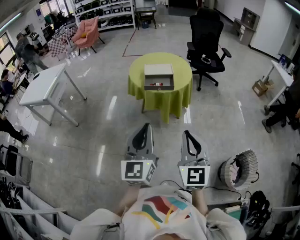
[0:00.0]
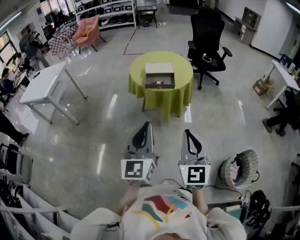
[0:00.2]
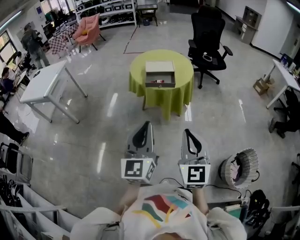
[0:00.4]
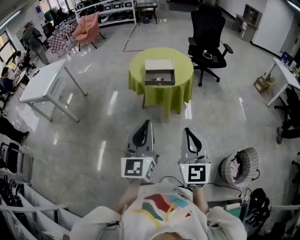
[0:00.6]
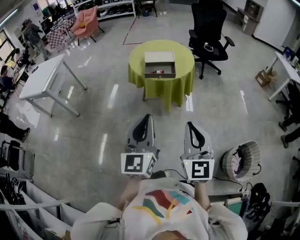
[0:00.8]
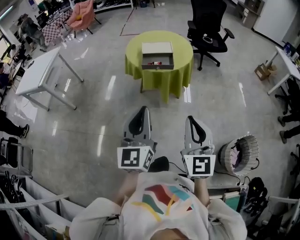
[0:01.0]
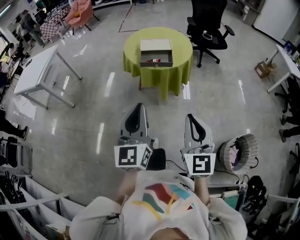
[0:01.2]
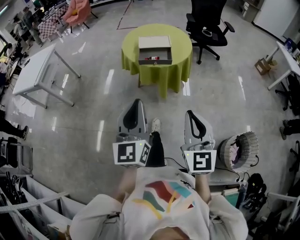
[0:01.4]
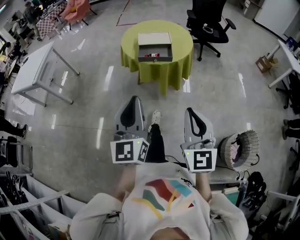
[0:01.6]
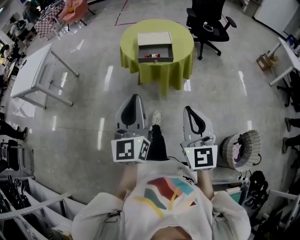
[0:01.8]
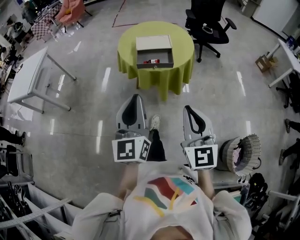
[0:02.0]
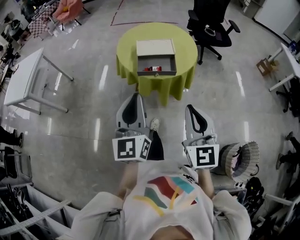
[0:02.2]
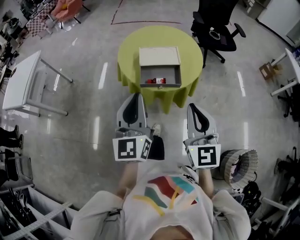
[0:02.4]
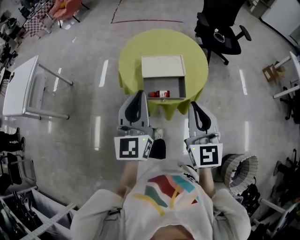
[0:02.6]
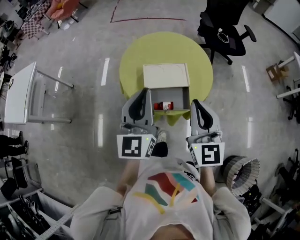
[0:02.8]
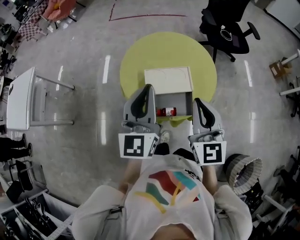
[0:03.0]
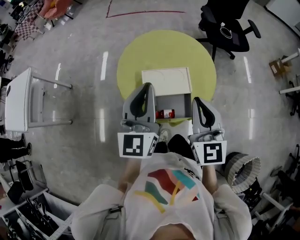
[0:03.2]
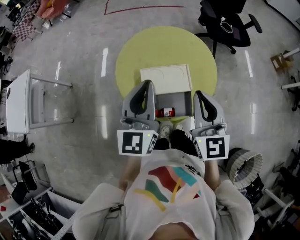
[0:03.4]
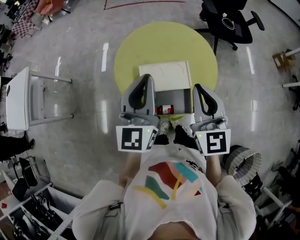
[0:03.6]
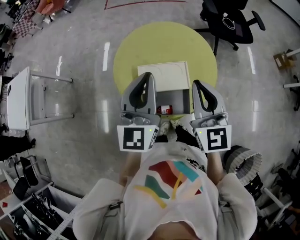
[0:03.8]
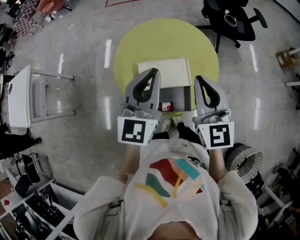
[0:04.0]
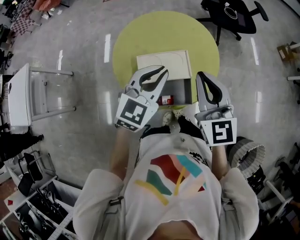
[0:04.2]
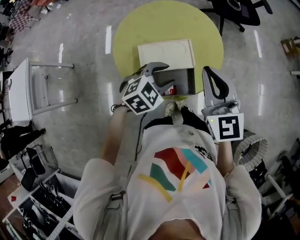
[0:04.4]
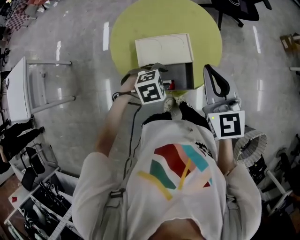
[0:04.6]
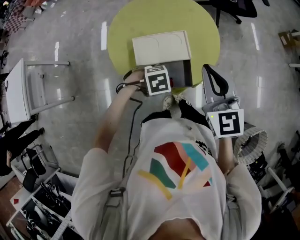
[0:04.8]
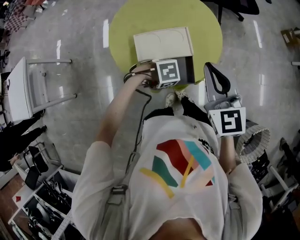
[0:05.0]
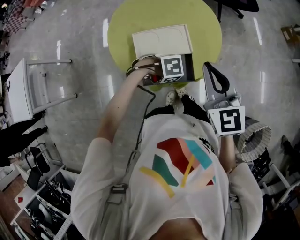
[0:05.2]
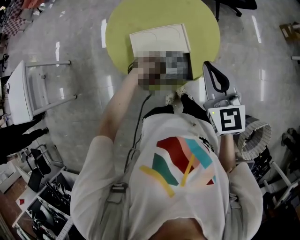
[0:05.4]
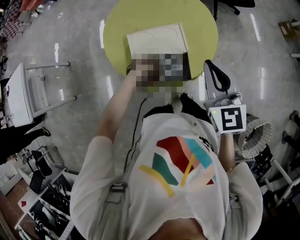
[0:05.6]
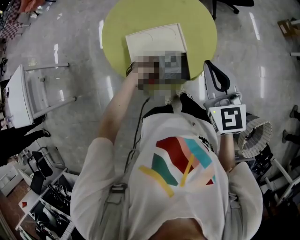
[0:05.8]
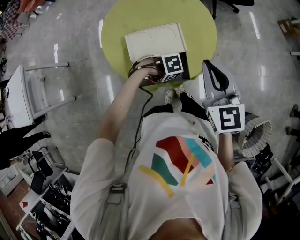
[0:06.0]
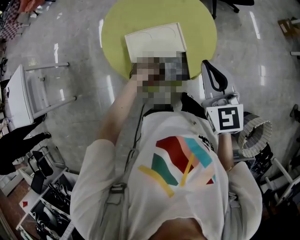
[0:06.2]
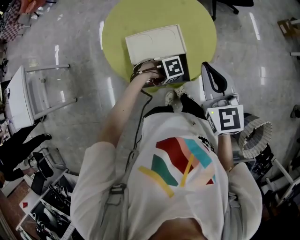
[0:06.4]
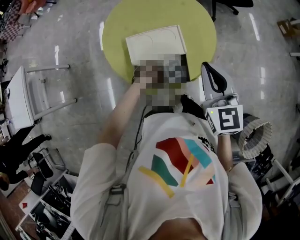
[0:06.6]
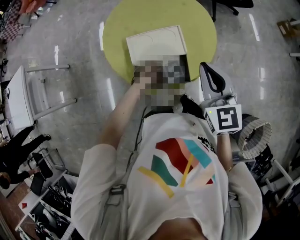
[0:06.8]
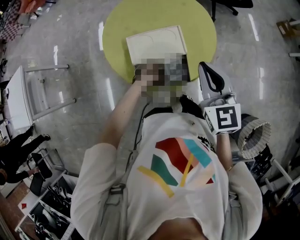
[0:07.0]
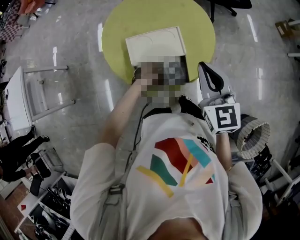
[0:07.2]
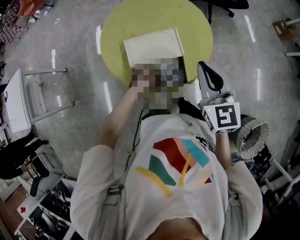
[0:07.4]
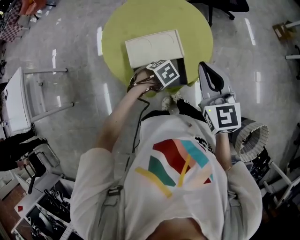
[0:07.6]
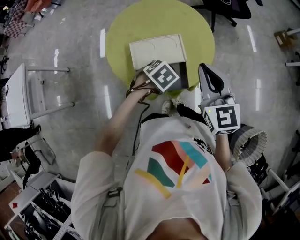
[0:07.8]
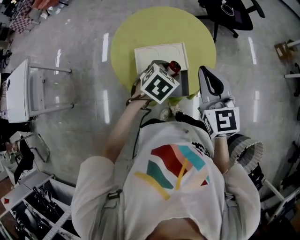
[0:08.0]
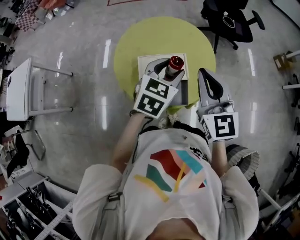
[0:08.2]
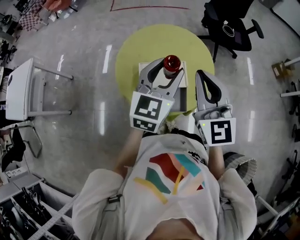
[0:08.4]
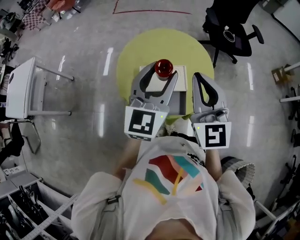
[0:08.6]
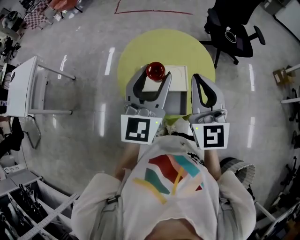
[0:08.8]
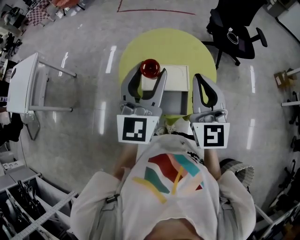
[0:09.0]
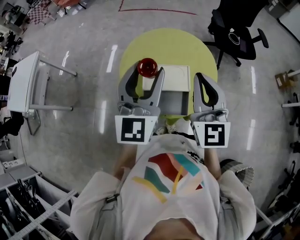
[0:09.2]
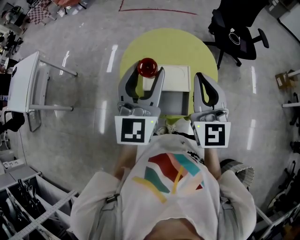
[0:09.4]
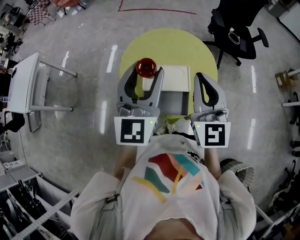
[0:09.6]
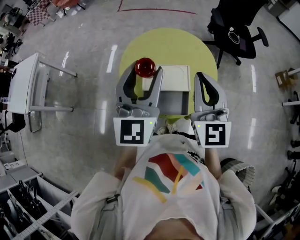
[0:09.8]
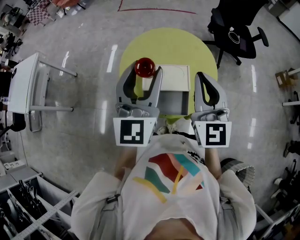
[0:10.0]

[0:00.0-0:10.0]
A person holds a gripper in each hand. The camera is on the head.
0:00.0 to 0:01.4: The grippers make only small movements.
0:01.4 to 0:02.8: Both grippers are carried forward, roughly 40 cm.
0:02.8 to 0:04.2: The left gripper is displaced forward, to the right and downward by some 15 cm, and changes its angle by roughly 40 degrees, while the right gripper goes approximately 10 cm forward.
0:04.2 to 0:05.8: The left gripper goes approximately 30 cm downward, tilts its fingers about 50 degrees downward, and opens; the right gripper ends up some 10 cm from where it was.
0:05.8 to 0:07.2: There are only small adjustments of the grippers.
0:07.2 to 0:08.6: The right gripper moves upward, roughly 10 cm, and rotates approximately 20 degrees. The left gripper shifts approximately 40 cm upward, and angles its fingers upward, by approximately 70 degrees.
0:08.6 to 0:10.0: The left gripper heads to the left, covering approximately 5 cm.

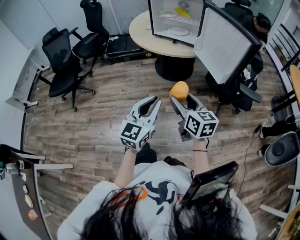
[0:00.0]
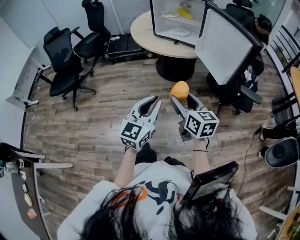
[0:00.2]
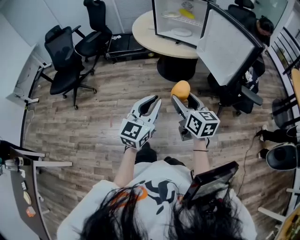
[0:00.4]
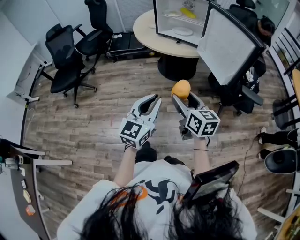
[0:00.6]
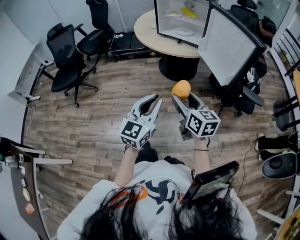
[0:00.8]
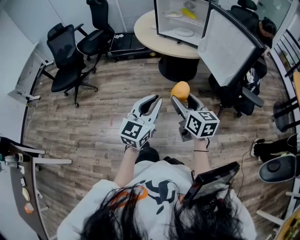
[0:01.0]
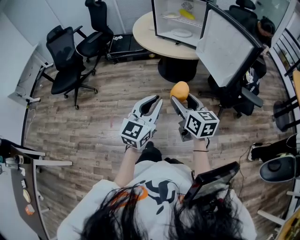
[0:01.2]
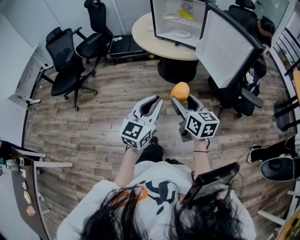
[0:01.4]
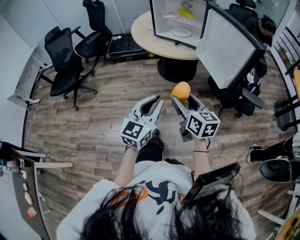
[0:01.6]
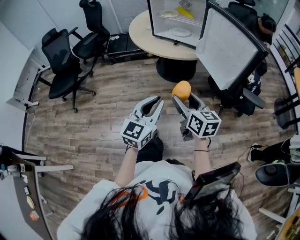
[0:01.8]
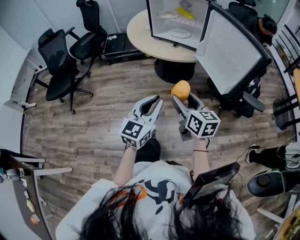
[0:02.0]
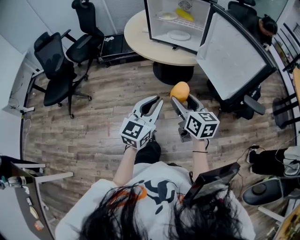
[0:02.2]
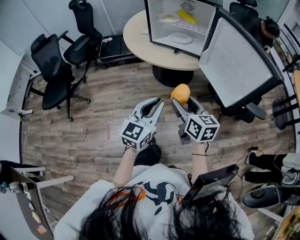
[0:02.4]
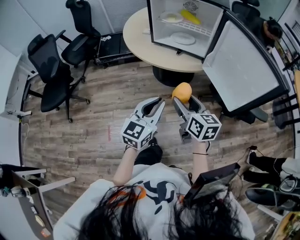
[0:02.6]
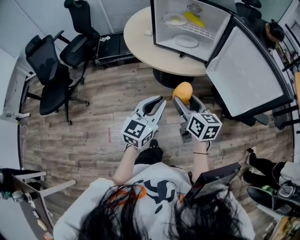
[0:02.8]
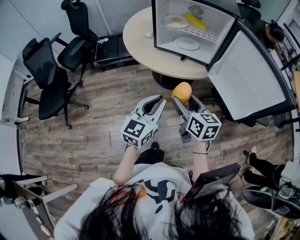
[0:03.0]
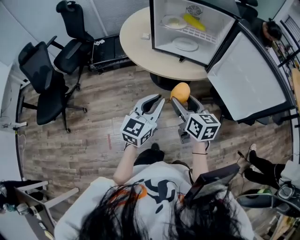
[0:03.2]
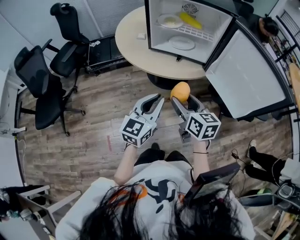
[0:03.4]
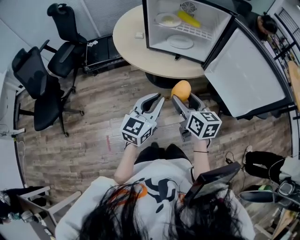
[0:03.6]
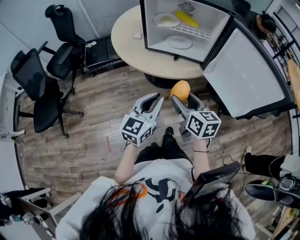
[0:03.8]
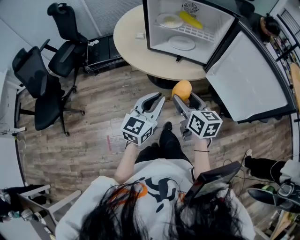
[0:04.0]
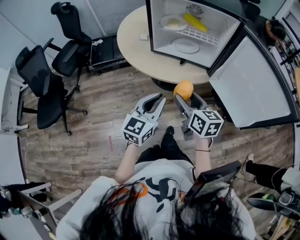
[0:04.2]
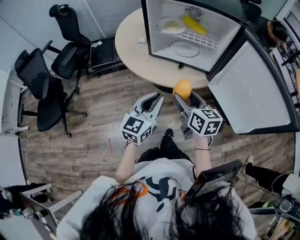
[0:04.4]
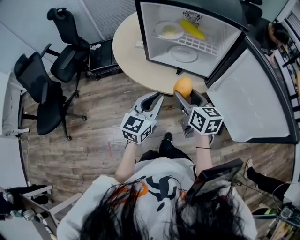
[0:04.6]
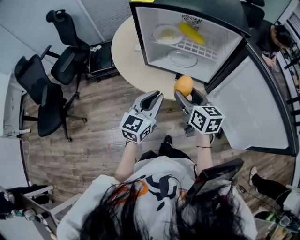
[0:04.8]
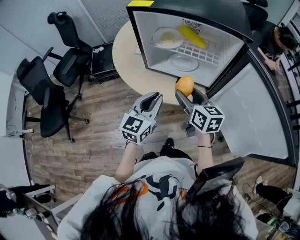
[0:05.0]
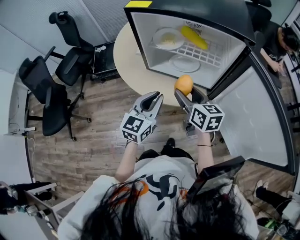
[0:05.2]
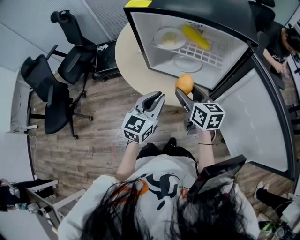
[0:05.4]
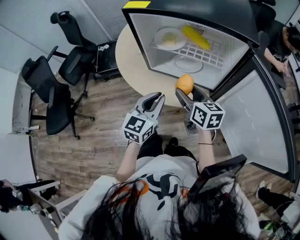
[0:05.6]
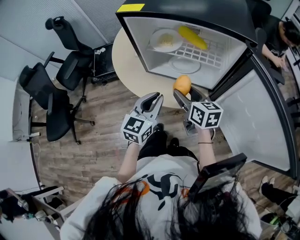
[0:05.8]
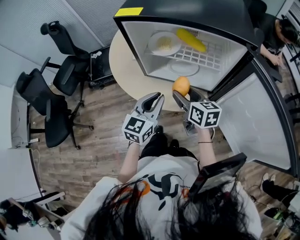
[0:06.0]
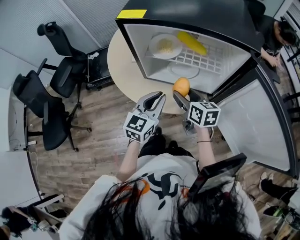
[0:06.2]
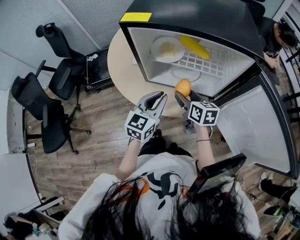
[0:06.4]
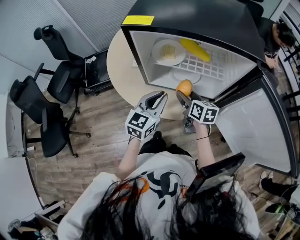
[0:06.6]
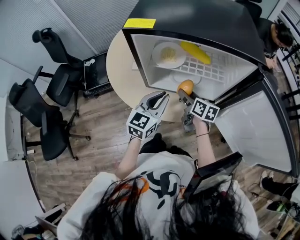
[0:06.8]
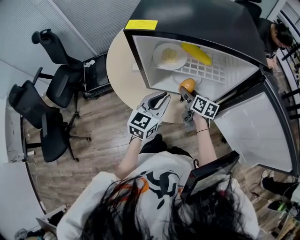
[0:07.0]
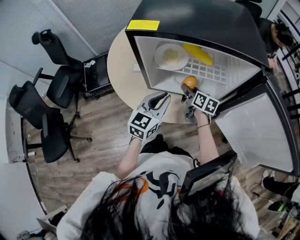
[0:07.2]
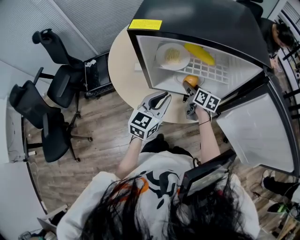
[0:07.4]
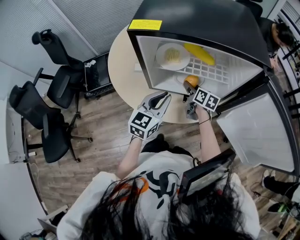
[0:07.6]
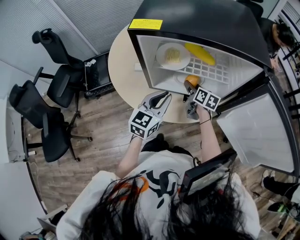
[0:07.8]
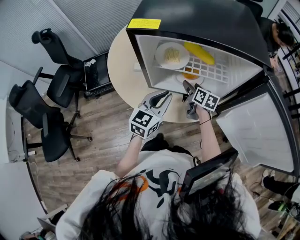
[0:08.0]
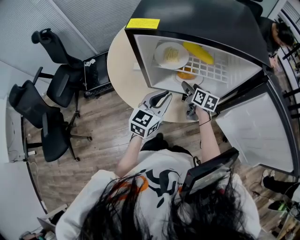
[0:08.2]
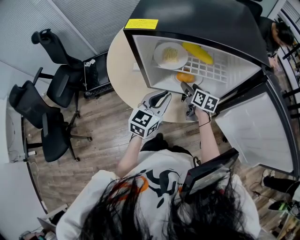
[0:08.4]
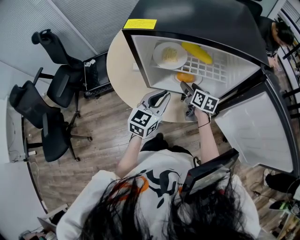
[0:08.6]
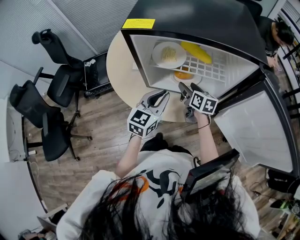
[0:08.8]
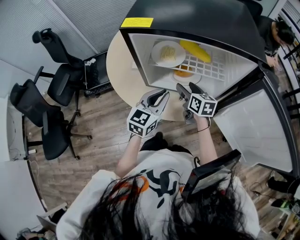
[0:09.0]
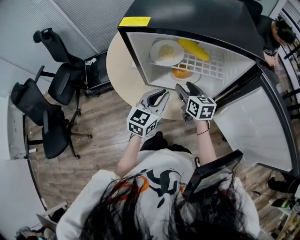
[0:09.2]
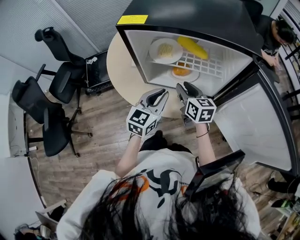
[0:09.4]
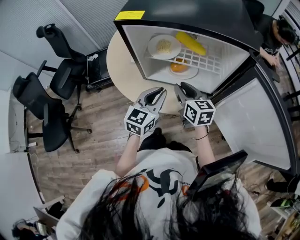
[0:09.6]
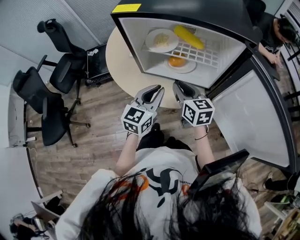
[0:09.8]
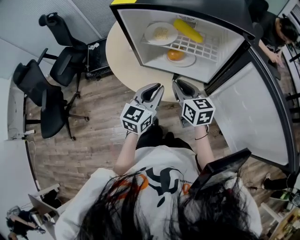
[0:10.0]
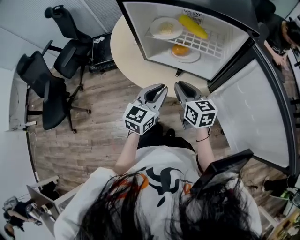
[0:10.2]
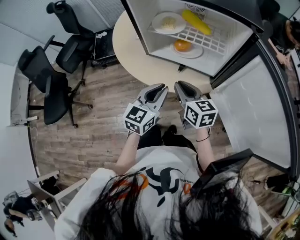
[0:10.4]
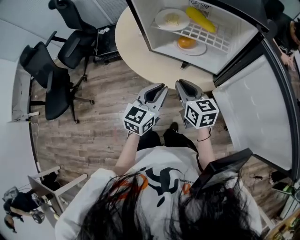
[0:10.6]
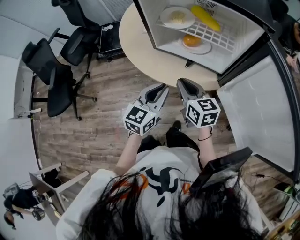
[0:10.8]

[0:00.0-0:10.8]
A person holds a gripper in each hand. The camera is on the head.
0:00.0 to 0:01.6: The grippers make only small movements.
0:01.6 to 0:03.0: The right gripper travels forward and to the left by approximately 25 cm. Meanwhile the left gripper goes roughly 25 cm forward.
0:03.0 to 0:04.6: The grippers both shift forward by about 15 cm.
0:04.6 to 0:06.2: Both grippers move forward, some 15 cm.
0:06.2 to 0:07.8: The right gripper heads forward and downward, covering some 15 cm, and rotates some 20 degrees. Meanwhile the left gripper moves some 5 cm.
0:07.8 to 0:09.2: The right gripper travels upward and backward by approximately 10 cm, and rotates some 20 degrees.
0:09.2 to 0:10.8: The two grippers go about 15 cm backward. The right gripper closes its fingers.

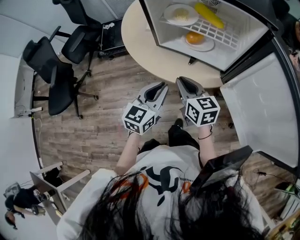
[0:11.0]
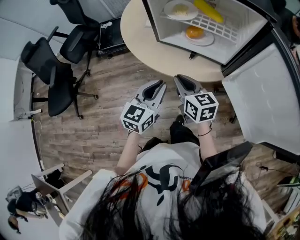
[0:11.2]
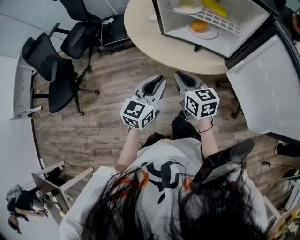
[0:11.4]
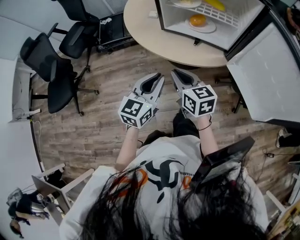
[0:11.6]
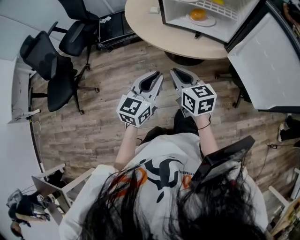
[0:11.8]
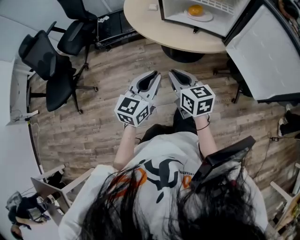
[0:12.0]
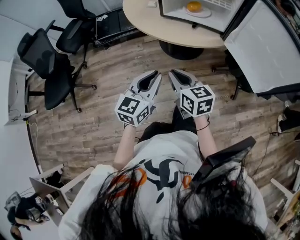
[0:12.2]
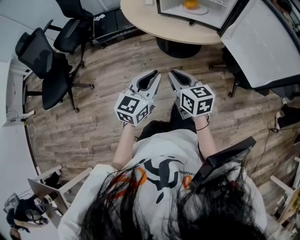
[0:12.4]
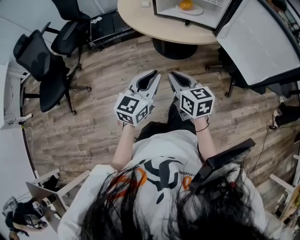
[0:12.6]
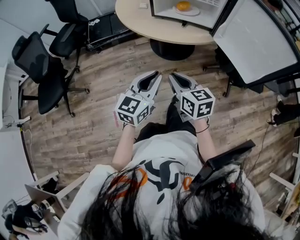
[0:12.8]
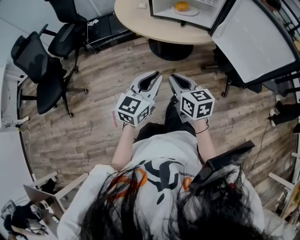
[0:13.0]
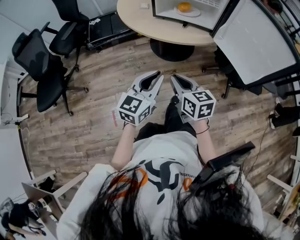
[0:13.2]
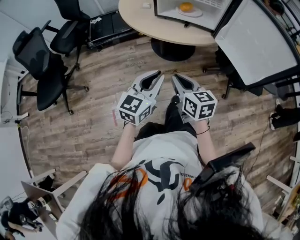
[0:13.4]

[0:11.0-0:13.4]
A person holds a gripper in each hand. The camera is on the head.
0:11.0 to 0:12.2: Both grippers travel together backward and to the left, some 20 cm.
0:12.2 to 0:13.4: The left gripper moves some 5 cm. Meanwhile the right gripper moves backward, some 5 cm.
